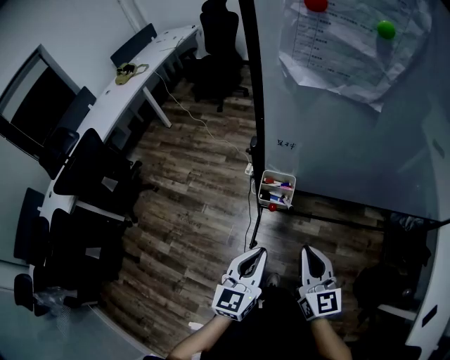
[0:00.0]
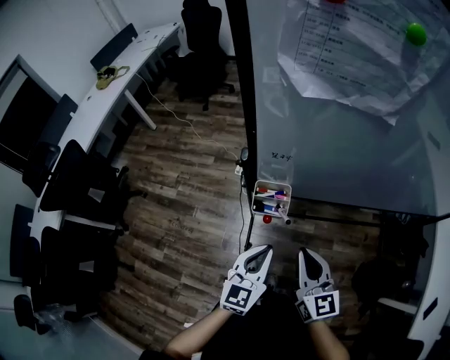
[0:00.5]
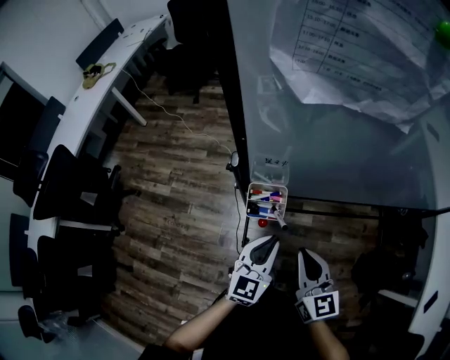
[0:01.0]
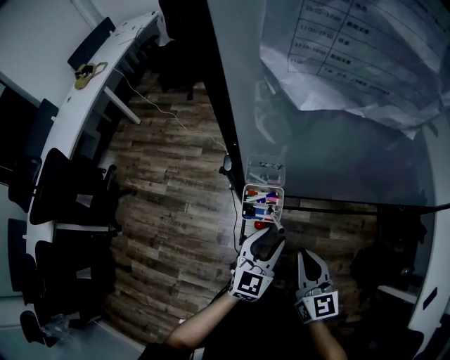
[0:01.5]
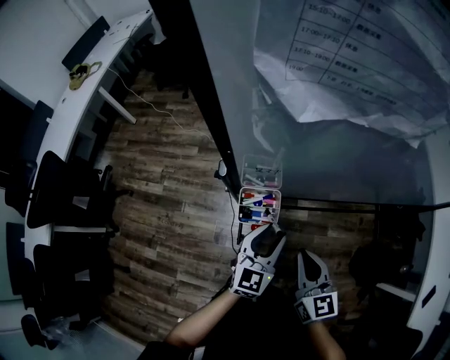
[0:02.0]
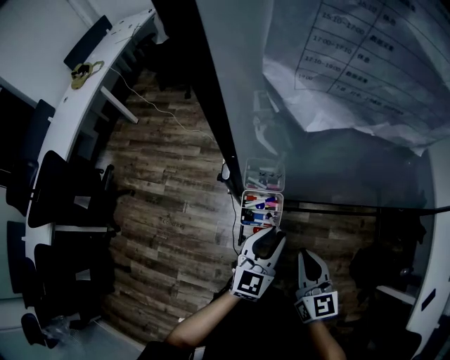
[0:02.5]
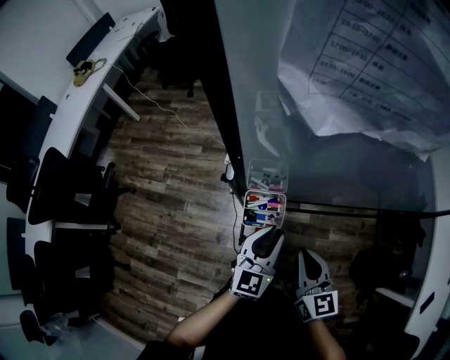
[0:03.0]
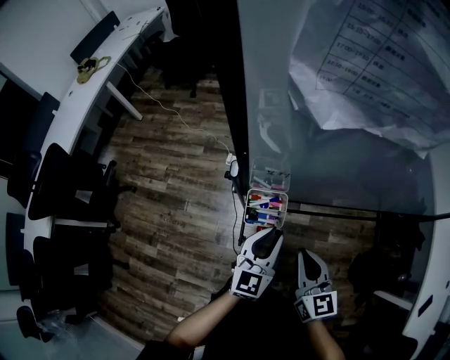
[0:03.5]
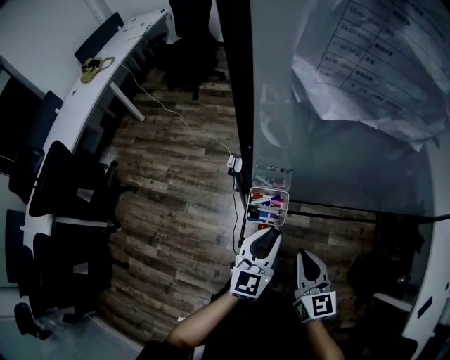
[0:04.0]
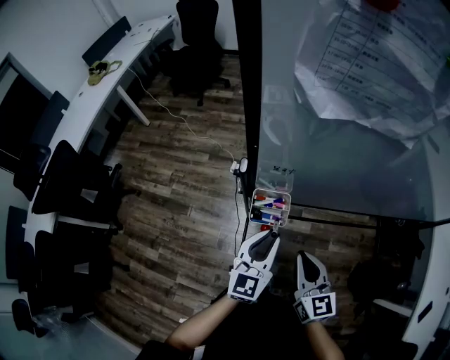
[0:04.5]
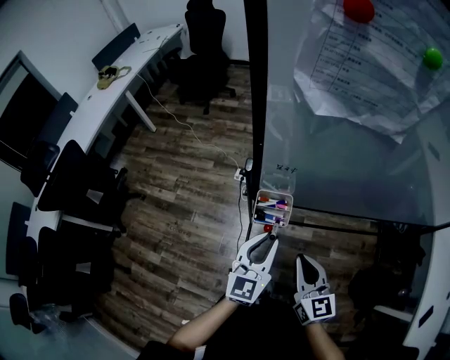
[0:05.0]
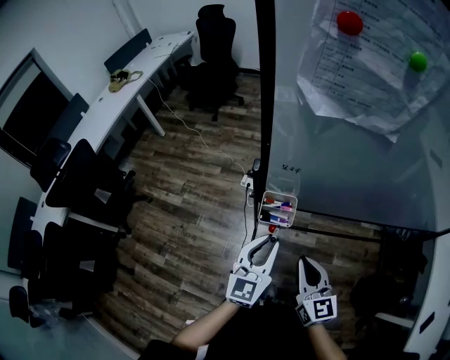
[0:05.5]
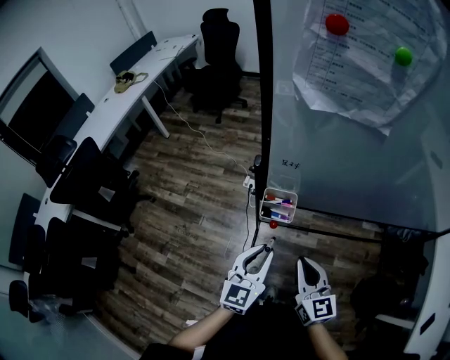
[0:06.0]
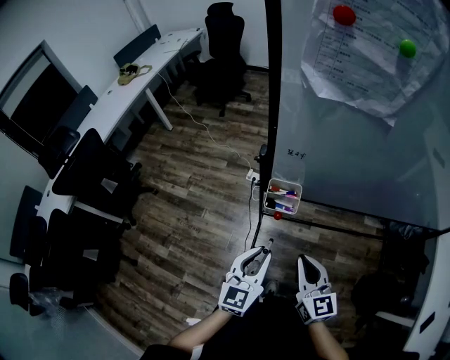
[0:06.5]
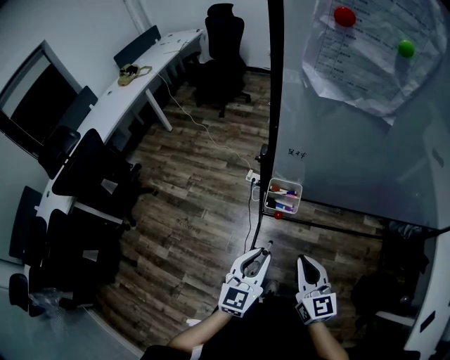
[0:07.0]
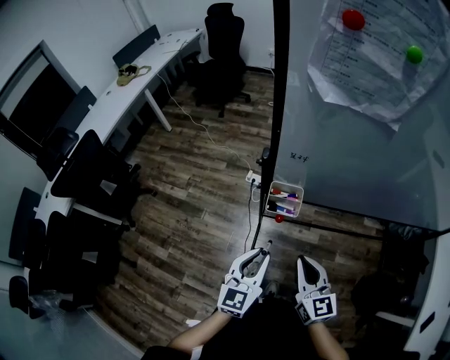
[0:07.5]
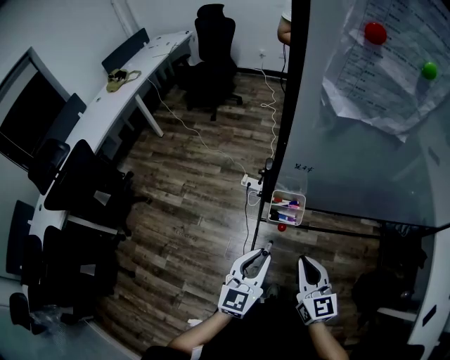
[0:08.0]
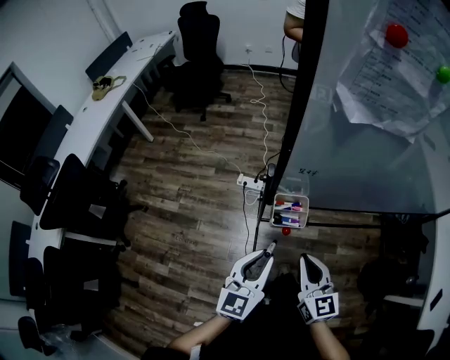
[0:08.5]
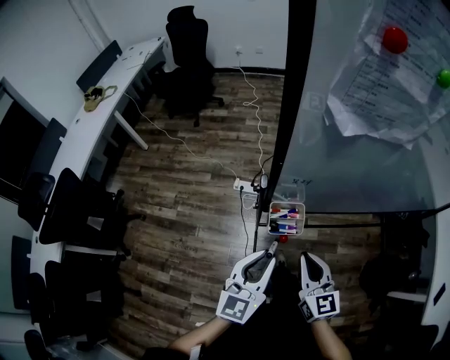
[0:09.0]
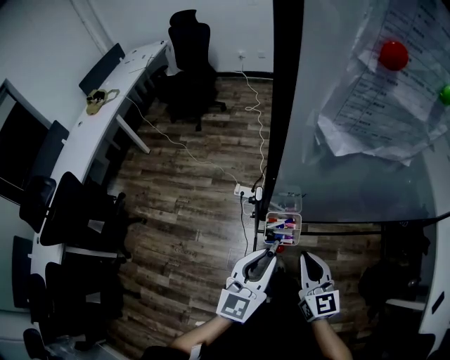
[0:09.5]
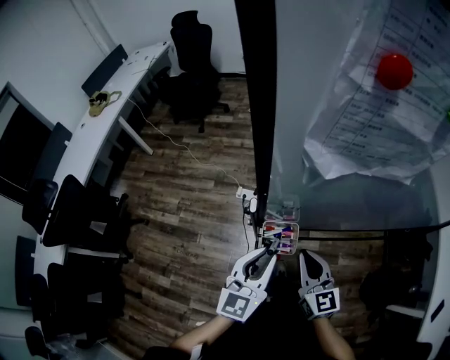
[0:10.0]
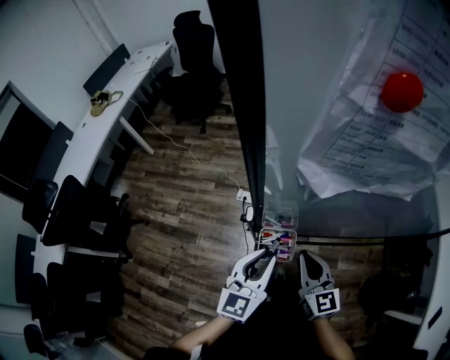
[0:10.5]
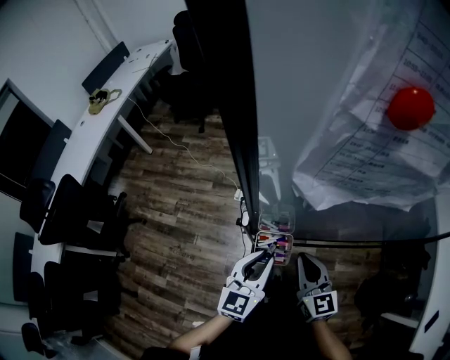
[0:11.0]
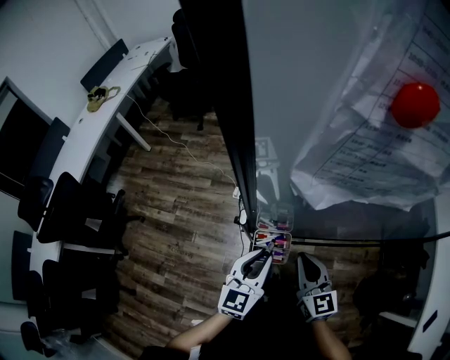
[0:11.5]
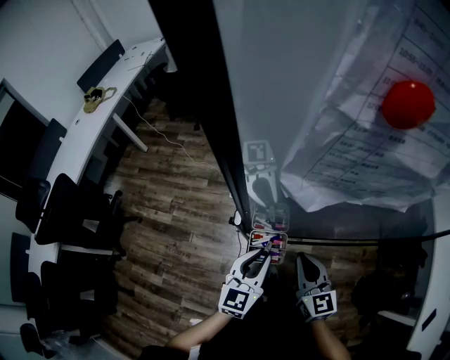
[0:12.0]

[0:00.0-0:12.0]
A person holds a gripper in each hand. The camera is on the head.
0:00.0 to 0:02.0: The left gripper is displaced forward and downward by roughly 20 cm, and opens its fingers. The right gripper is displaced forward and downward by roughly 10 cm.
0:02.0 to 0:04.0: The grippers stay close to where they were, moving slightly.
0:04.0 to 0:06.0: The right gripper travels backward by approximately 5 cm; the left gripper goes roughly 10 cm backward.
0:06.0 to 0:08.0: The grippers stay close to where they were, moving slightly.
0:08.0 to 0:10.0: The right gripper heads forward, covering approximately 10 cm; the left gripper travels forward and upward by approximately 15 cm.
0:10.0 to 0:12.0: The left gripper moves downward, about 5 cm.

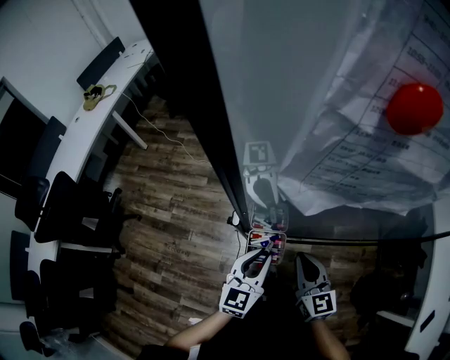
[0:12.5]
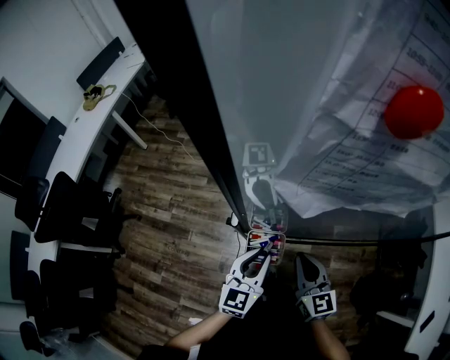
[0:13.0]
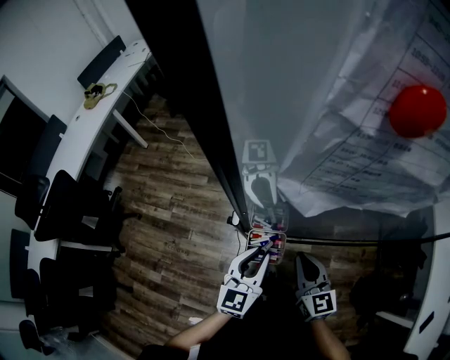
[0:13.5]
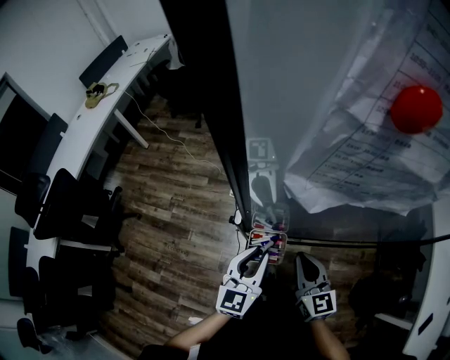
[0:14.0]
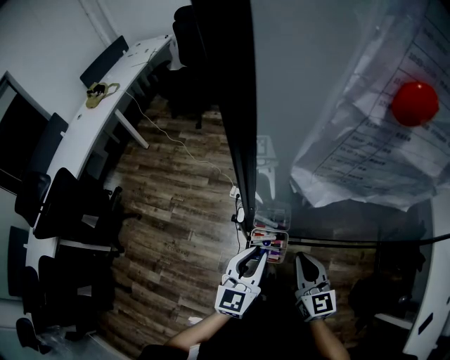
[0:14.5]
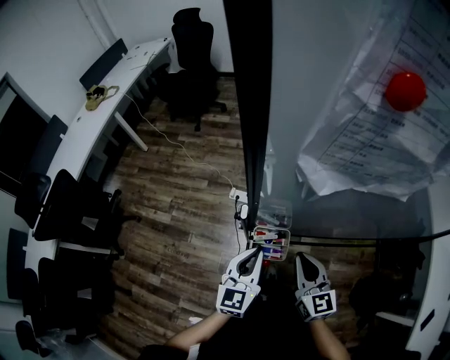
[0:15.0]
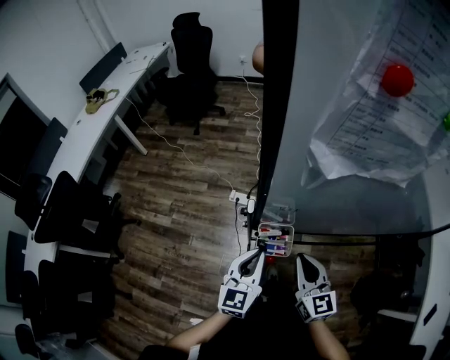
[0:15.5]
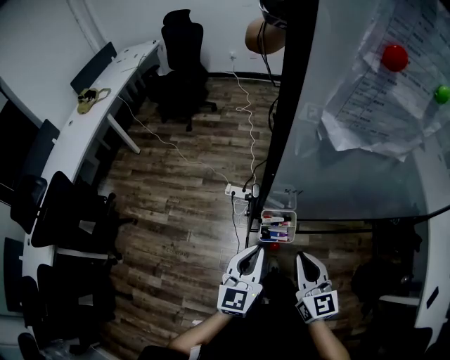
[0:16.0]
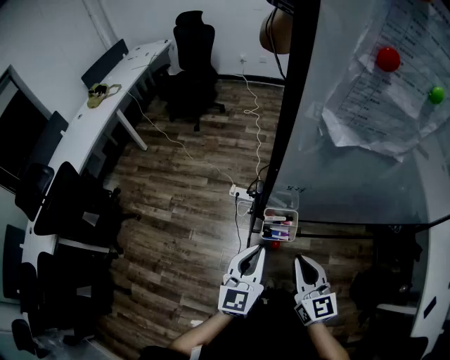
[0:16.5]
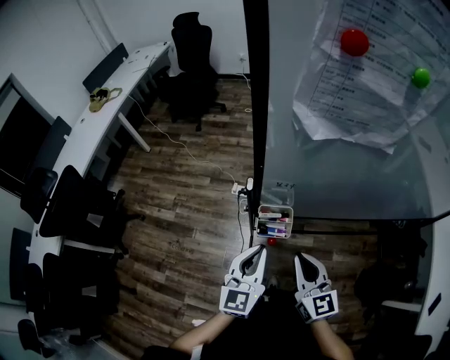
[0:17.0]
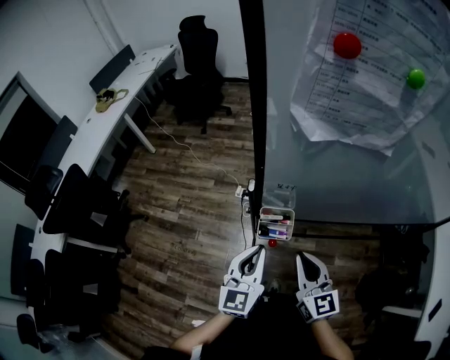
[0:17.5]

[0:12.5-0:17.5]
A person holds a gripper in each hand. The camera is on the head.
0:12.5 to 0:15.0: The grippers move only a little.
0:15.0 to 0:17.5: Both grippers move backward, roughly 5 cm.

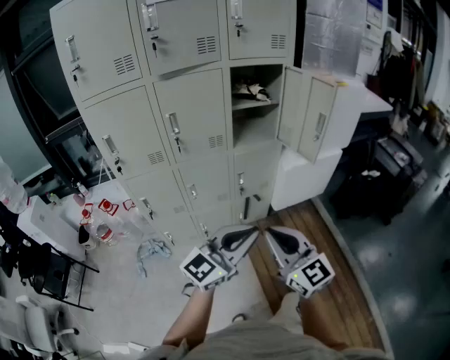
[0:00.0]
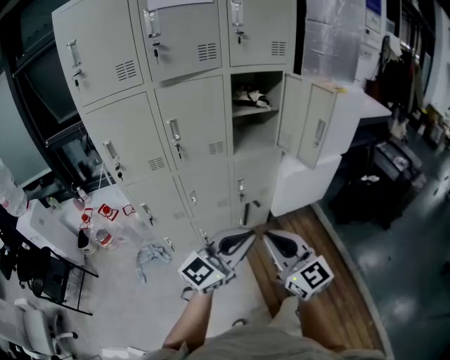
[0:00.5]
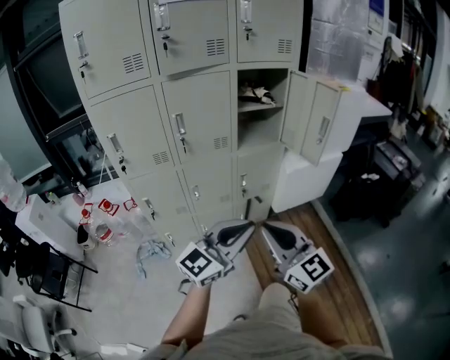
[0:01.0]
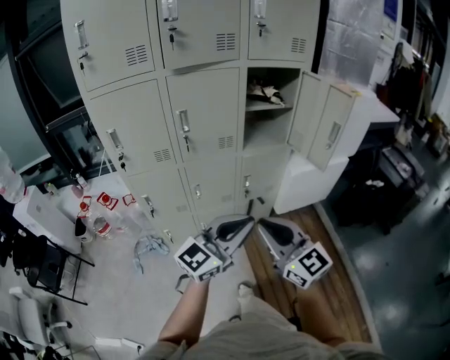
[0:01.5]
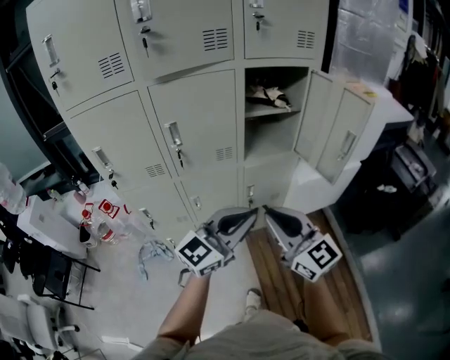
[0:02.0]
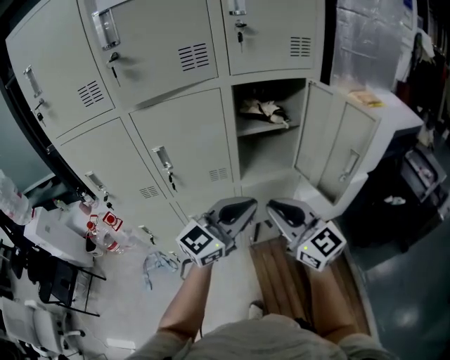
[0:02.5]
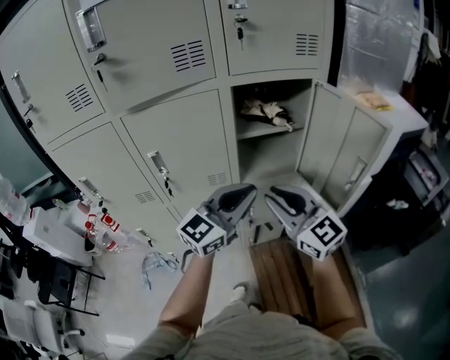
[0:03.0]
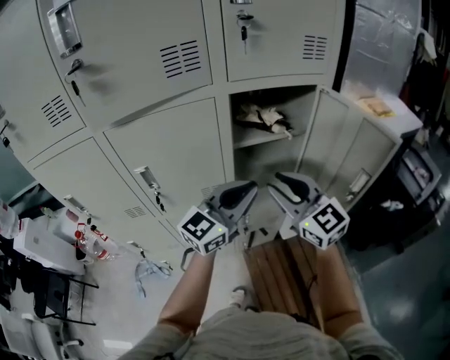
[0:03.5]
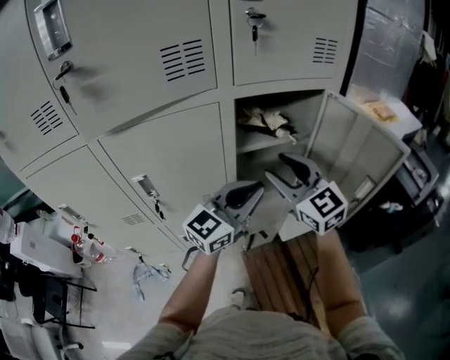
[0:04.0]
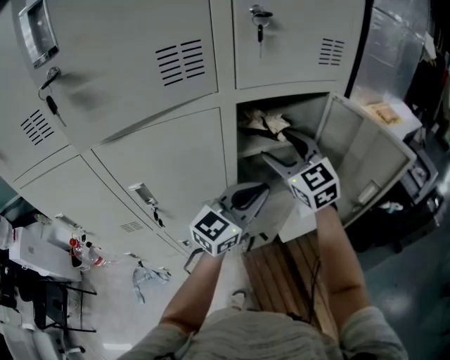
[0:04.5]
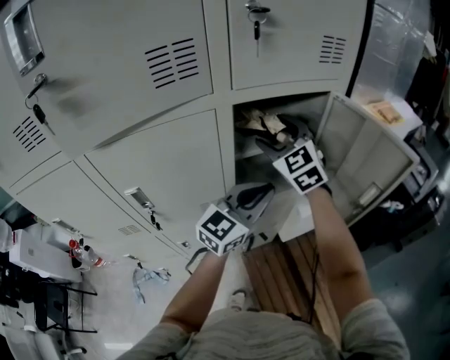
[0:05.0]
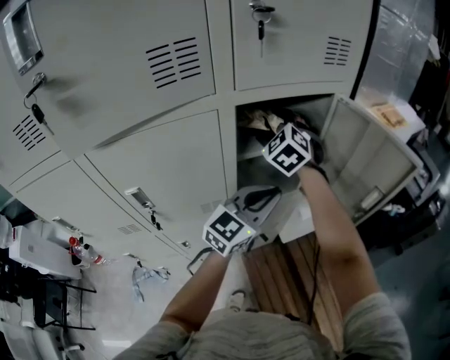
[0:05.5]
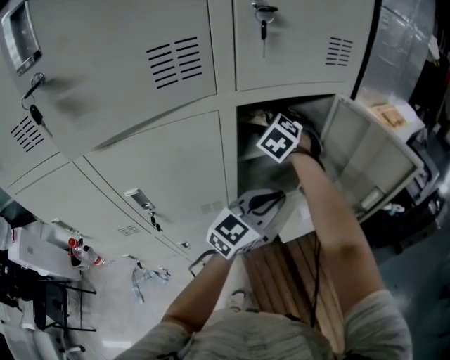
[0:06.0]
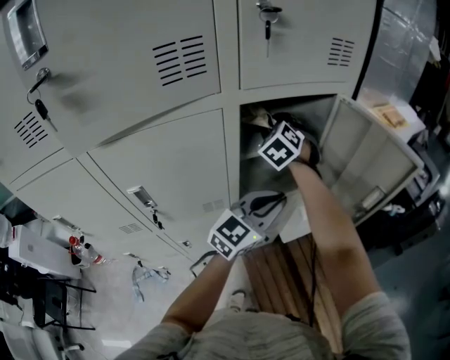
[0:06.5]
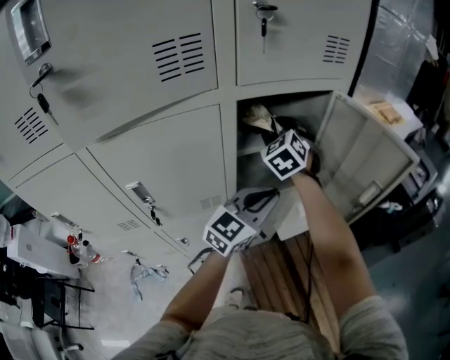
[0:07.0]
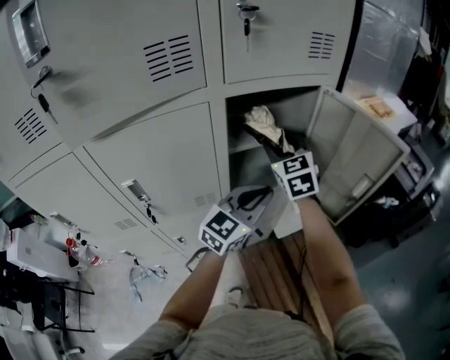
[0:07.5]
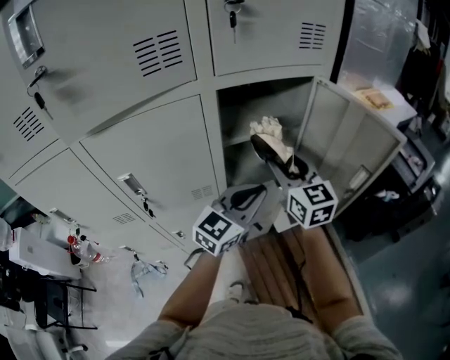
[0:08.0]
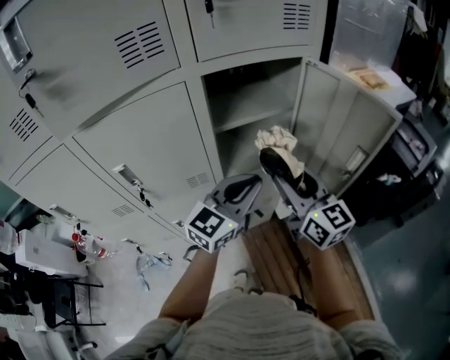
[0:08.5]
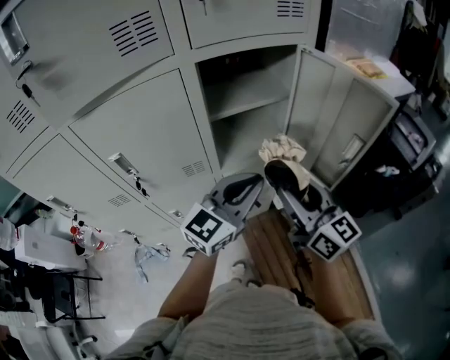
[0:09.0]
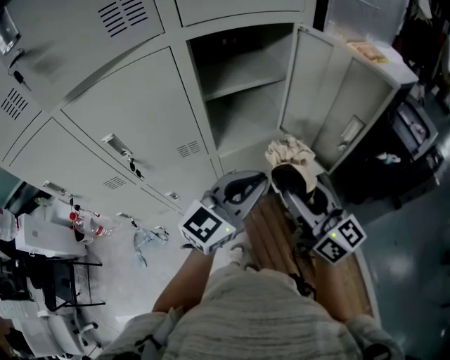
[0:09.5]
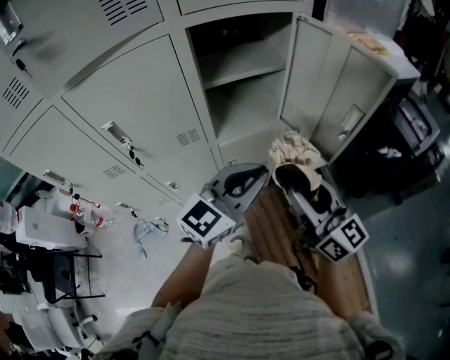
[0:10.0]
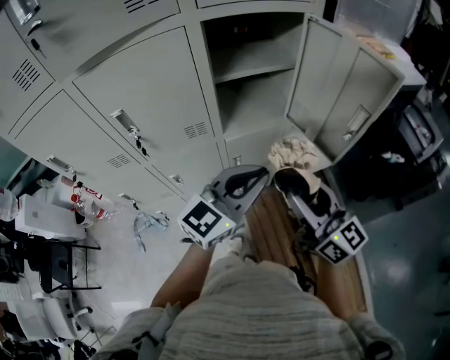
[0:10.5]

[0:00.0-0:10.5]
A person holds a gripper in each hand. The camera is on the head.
0:00.0 to 0:02.0: The two grippers go roughly 15 cm forward.
0:02.0 to 0:04.0: Both grippers travel together forward, approximately 30 cm. The right gripper opens its fingers.
0:04.0 to 0:06.5: The right gripper travels forward by about 20 cm, and changes its angle by roughly 50 degrees, while the left gripper changes place by about 5 cm.
0:06.5 to 0:08.5: The left gripper goes approximately 5 cm backward. Meanwhile the right gripper moves backward and to the right, approximately 30 cm, and points its fingers roughly 30 degrees further upward.
0:08.5 to 0:10.5: Both grippers travel together backward, about 10 cm.
